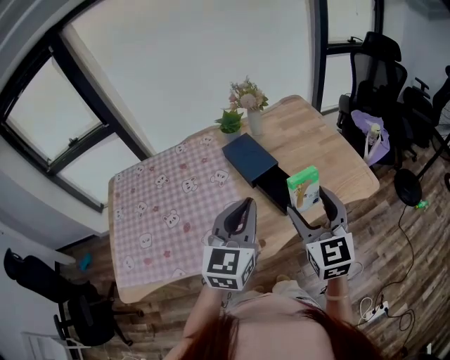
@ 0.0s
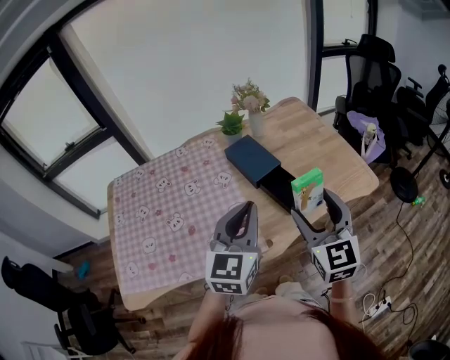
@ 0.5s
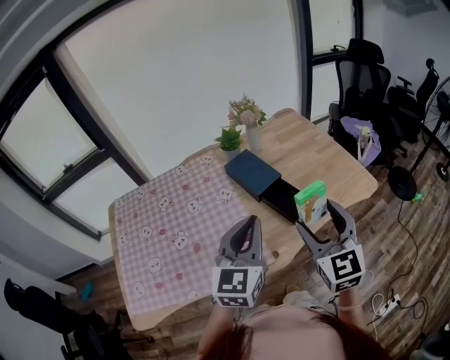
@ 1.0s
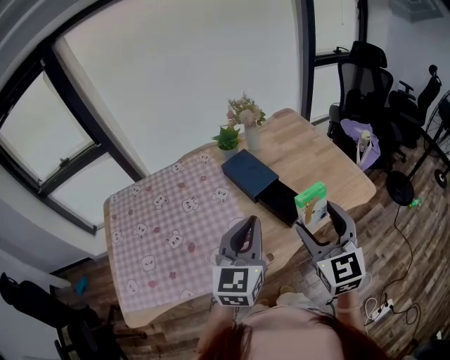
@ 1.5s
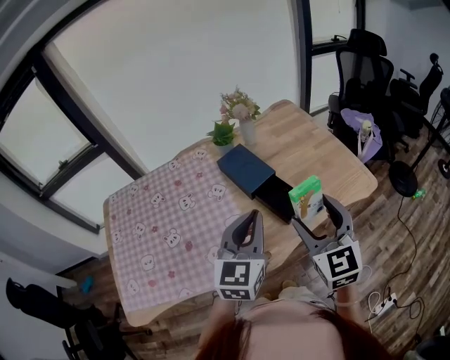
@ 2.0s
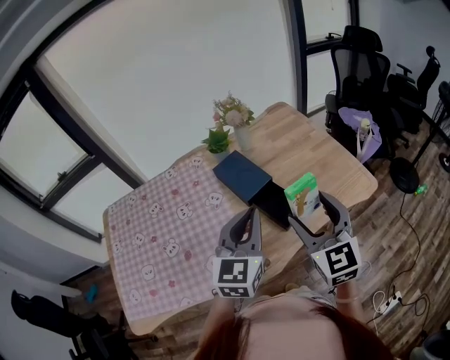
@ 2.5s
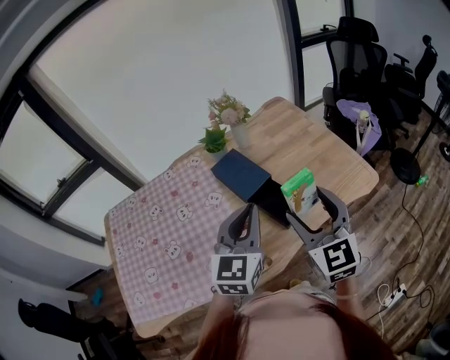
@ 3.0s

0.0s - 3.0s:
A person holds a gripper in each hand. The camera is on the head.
0.0s - 1.5s: The grippers move only a little.
1.5s - 3.0s: The grippers both shift forward by some 5 cm.

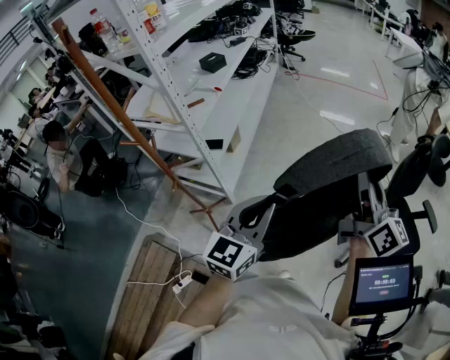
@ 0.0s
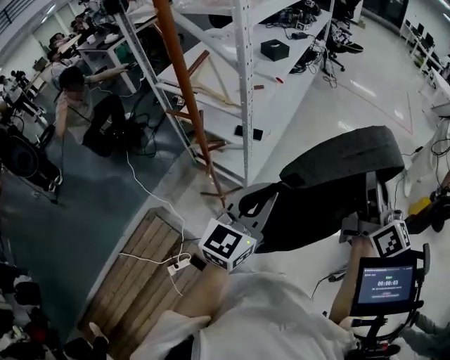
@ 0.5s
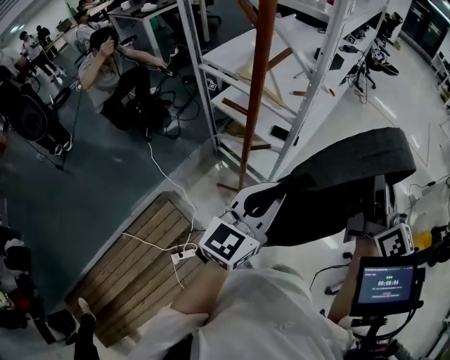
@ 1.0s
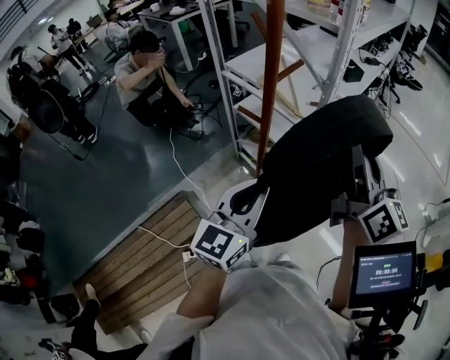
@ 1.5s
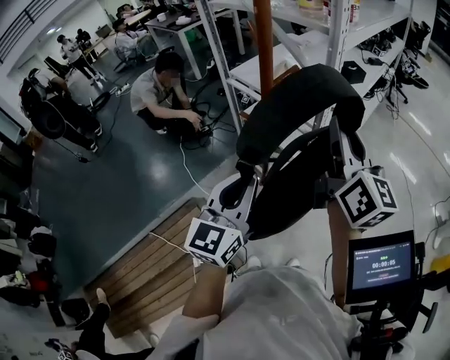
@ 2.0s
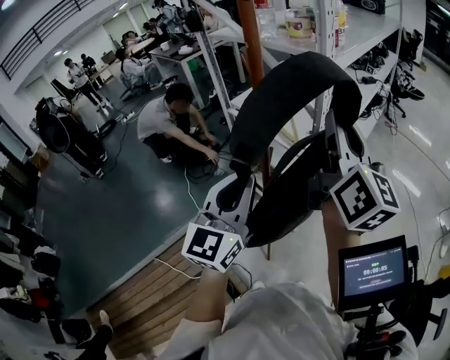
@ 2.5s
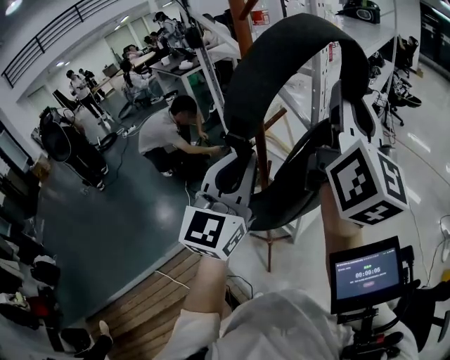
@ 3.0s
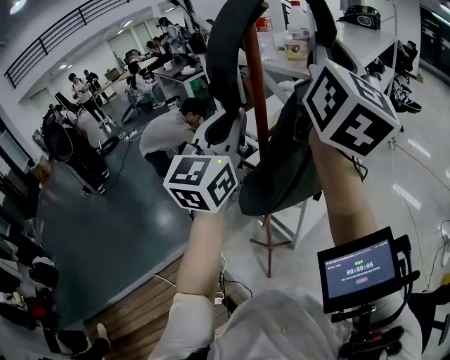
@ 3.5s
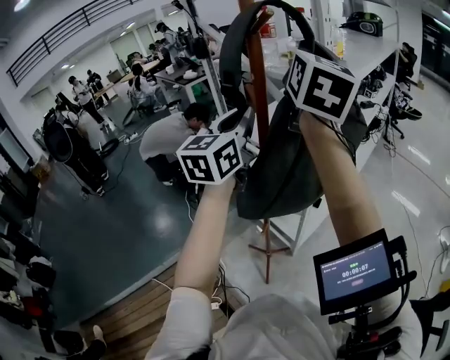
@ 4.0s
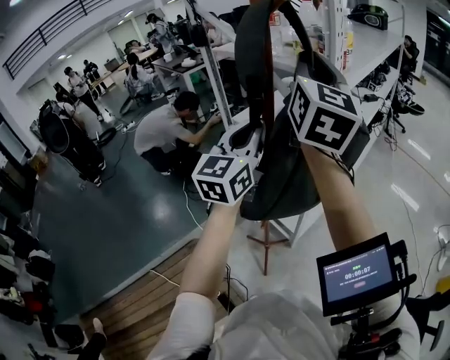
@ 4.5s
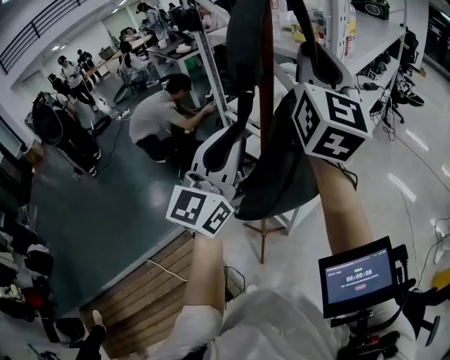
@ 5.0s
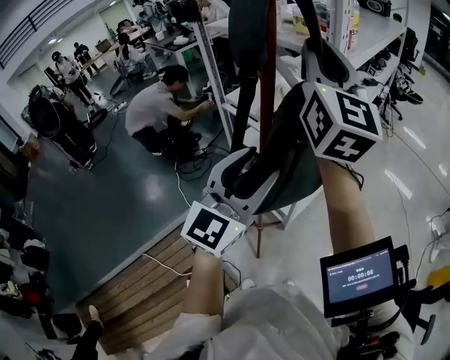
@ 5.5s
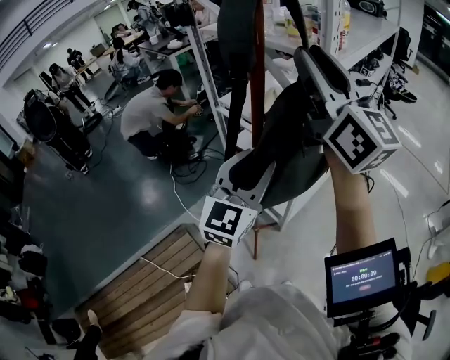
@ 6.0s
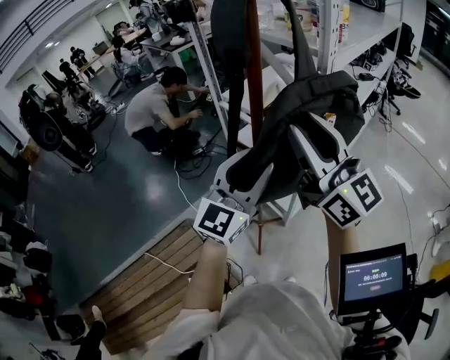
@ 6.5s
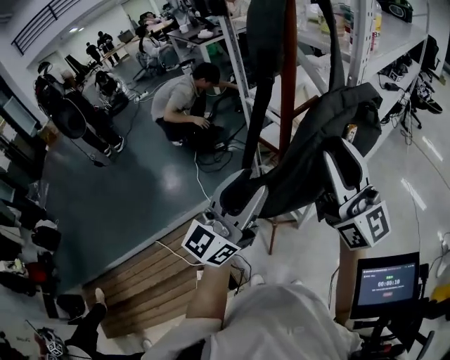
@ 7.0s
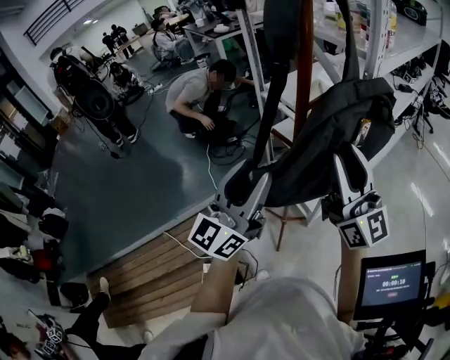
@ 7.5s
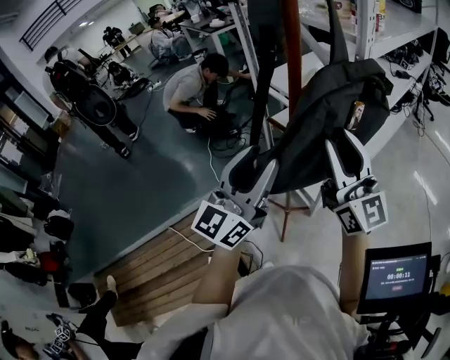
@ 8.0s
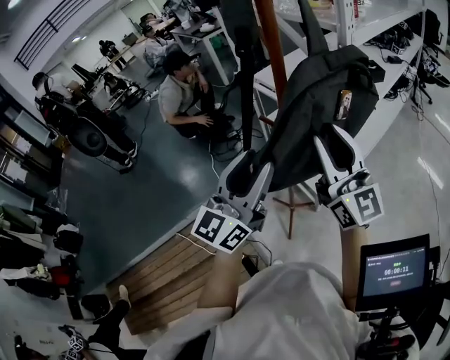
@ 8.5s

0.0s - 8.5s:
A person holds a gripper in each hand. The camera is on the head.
0.0s - 2.0s: The pair of grippers is taken some 50 cm. The left gripper changes its angle by some 40 degrees. The right gripper turns by approximately 20 degrees.
2.0s - 4.0s: The two grippers go about 25 cm upward and forward. The right gripper rotates roughly 20 degrees.
4.0s - 6.5s: Both grippers move downward and backward, some 20 cm. The right gripper rotates about 40 degrees, and opens its fingers, while the left gripper opens its fingers.
6.5s - 8.5s: The left gripper goes about 10 cm backward and to the left; the right gripper shifts about 5 cm downward.

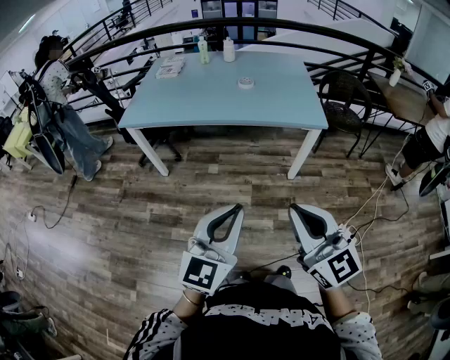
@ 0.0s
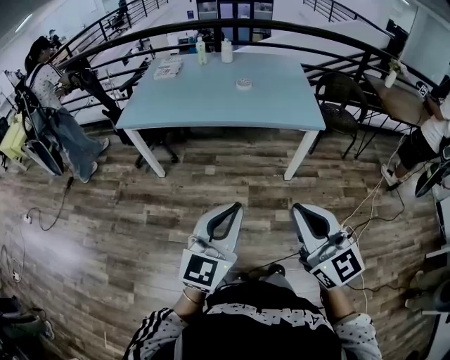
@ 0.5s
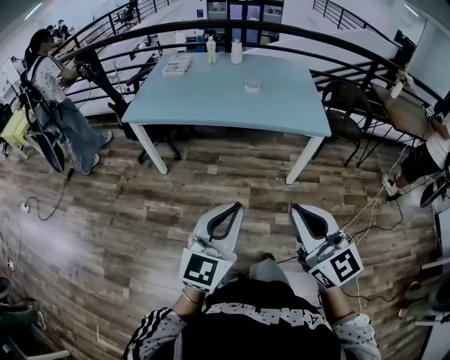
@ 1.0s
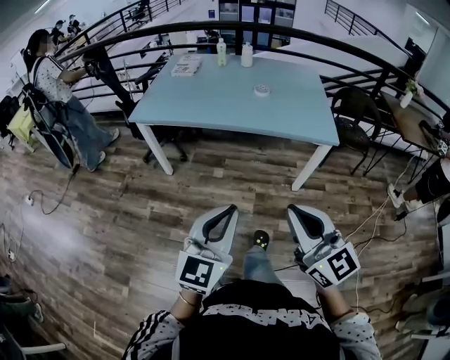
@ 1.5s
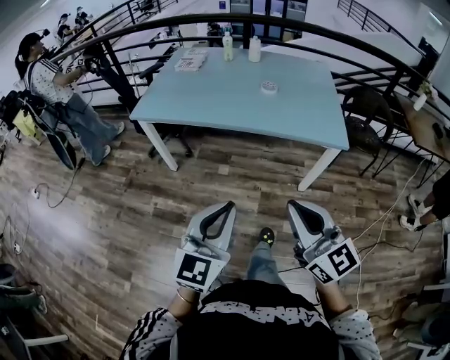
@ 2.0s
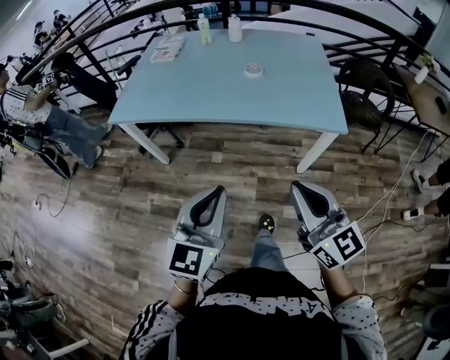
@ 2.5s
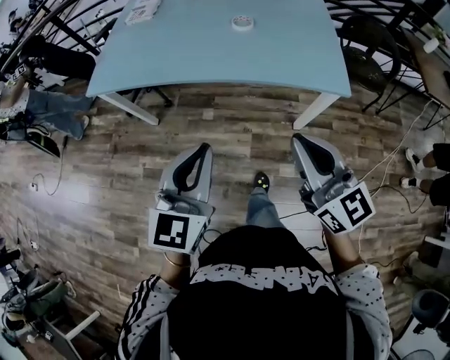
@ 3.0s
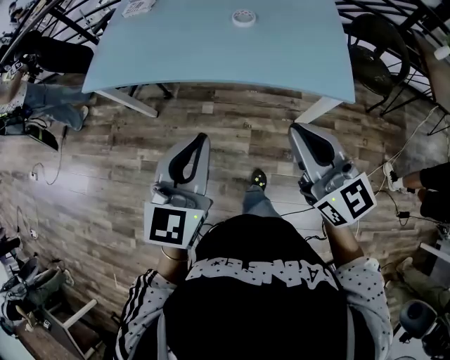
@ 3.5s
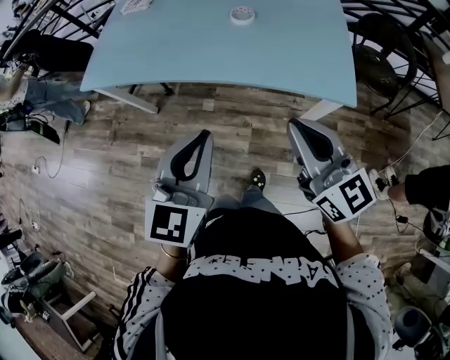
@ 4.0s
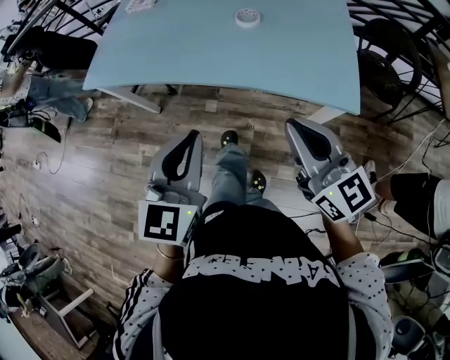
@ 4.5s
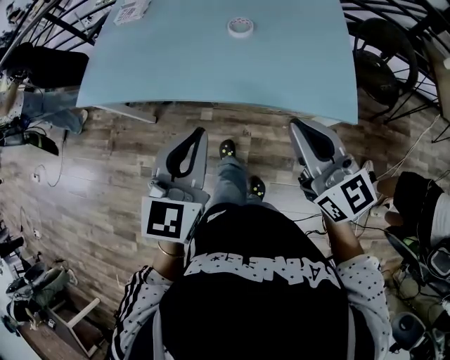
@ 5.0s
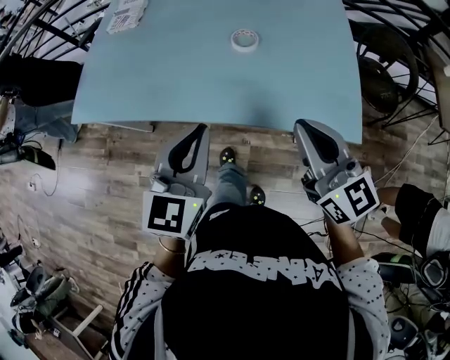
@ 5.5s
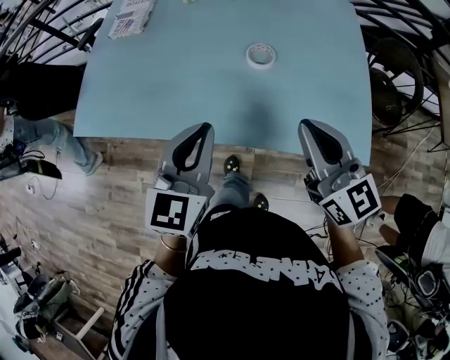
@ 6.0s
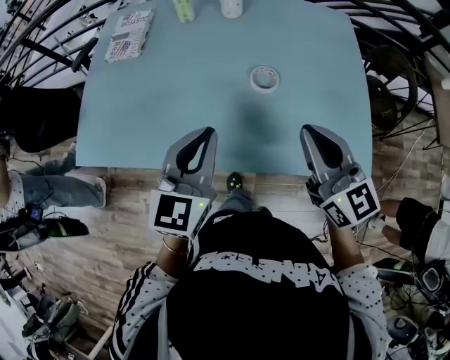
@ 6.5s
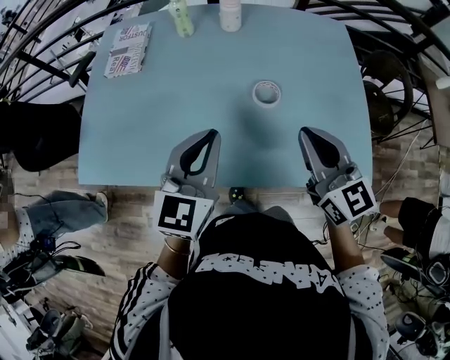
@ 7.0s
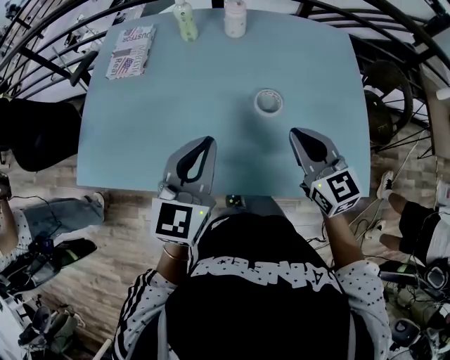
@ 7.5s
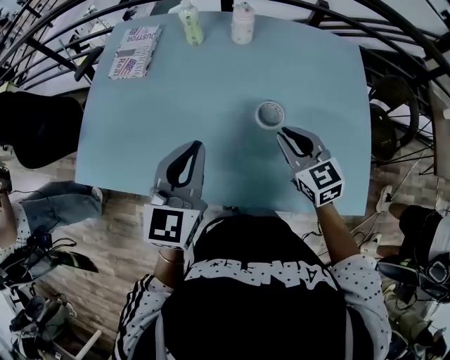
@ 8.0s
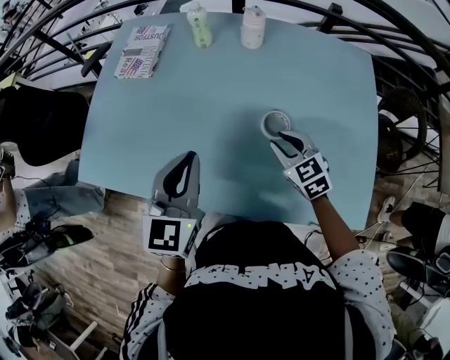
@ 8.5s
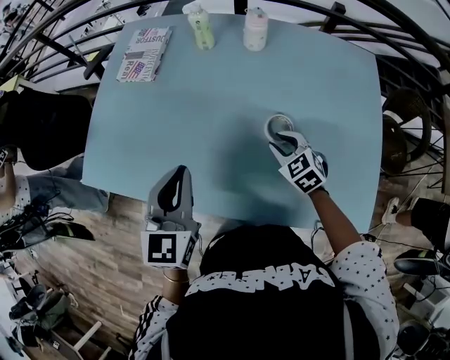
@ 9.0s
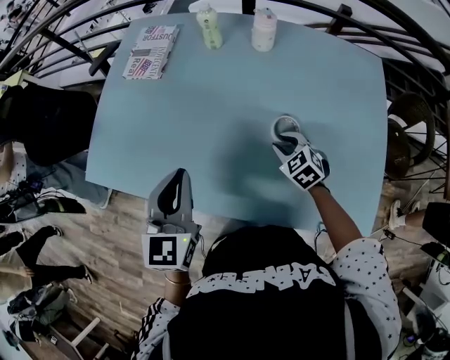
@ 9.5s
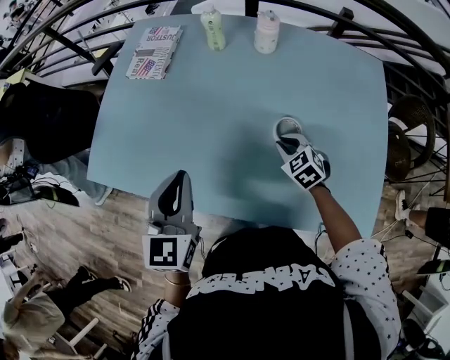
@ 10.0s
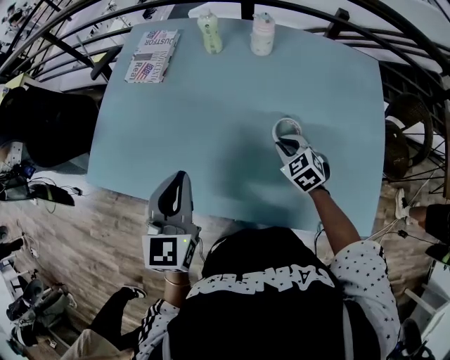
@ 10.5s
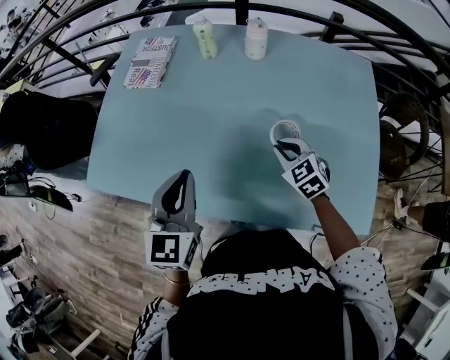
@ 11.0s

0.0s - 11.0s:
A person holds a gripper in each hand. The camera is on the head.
0.0s - 2.0s: Both grippers move forward, approximately 10 cm.
2.0s - 3.5s: The grippers both shift forward and to the right by roughly 25 cm.
3.5s - 5.5s: The two grippers go some 20 cm forward.
5.5s - 7.5s: The left gripper moves forward and to the left, approximately 25 cm, while the right gripper goes roughly 25 cm forward.
7.5s - 9.0s: The right gripper heads downward and forward, covering roughly 20 cm, swivels roughly 40 degrees, and opens, while the left gripper shifts about 5 cm to the left, and changes its angle by roughly 20 degrees.
9.0s - 11.0s: The grippers move only a little.

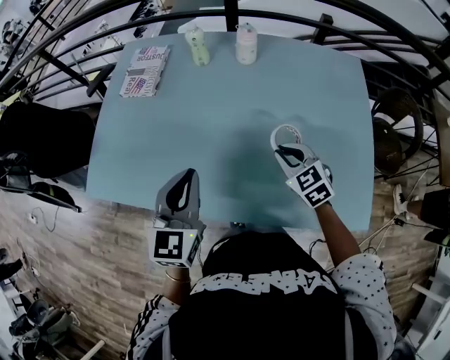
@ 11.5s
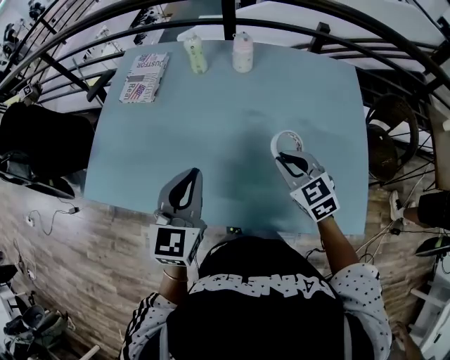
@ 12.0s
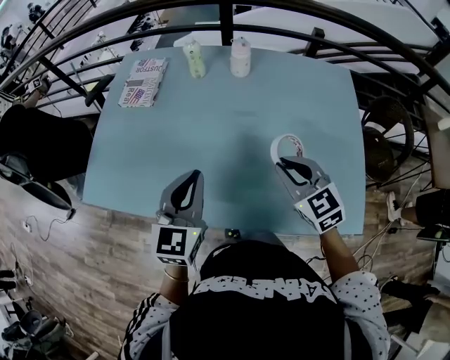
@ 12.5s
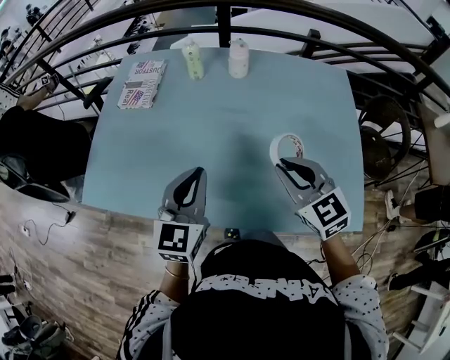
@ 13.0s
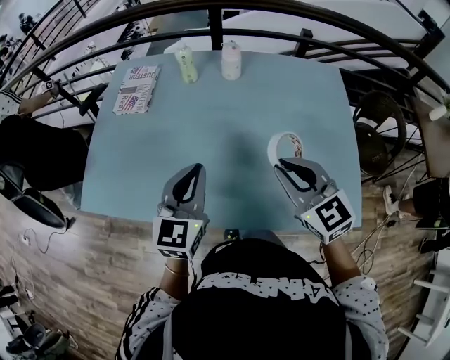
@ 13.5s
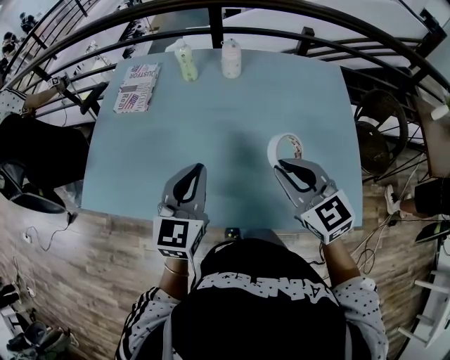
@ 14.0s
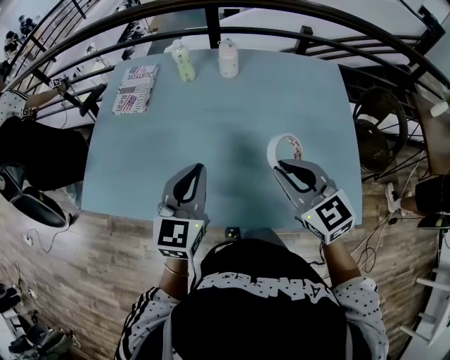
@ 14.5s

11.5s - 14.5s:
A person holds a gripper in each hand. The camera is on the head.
11.5s - 13.0s: The right gripper is displaced upward and backward by approximately 15 cm.
13.0s - 14.5s: The grippers stay close to where they were, moving slightly.

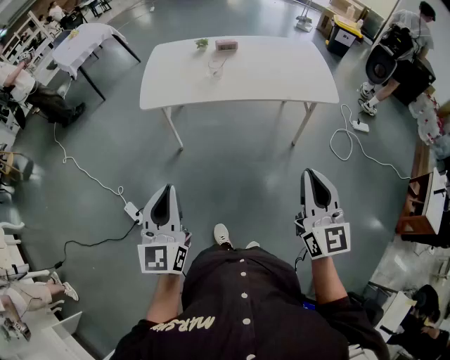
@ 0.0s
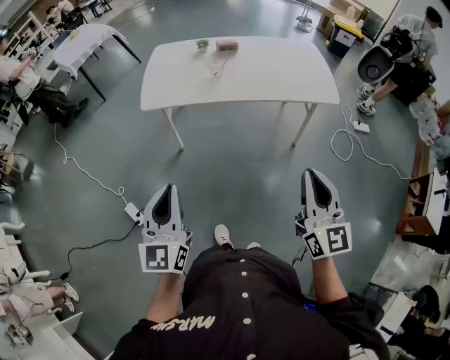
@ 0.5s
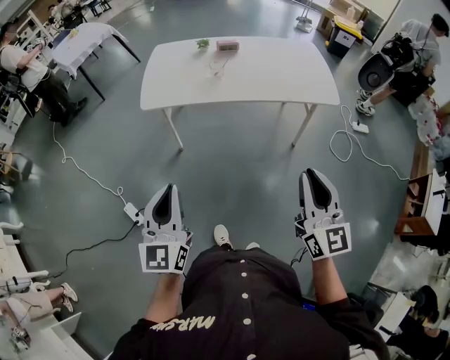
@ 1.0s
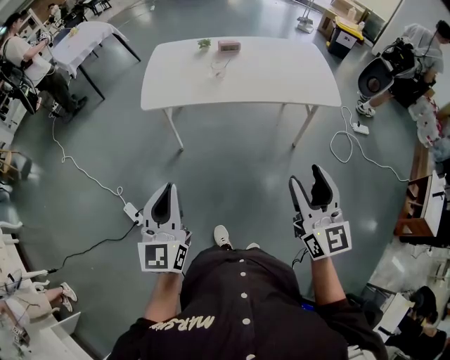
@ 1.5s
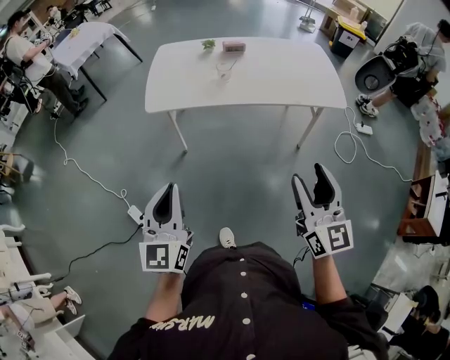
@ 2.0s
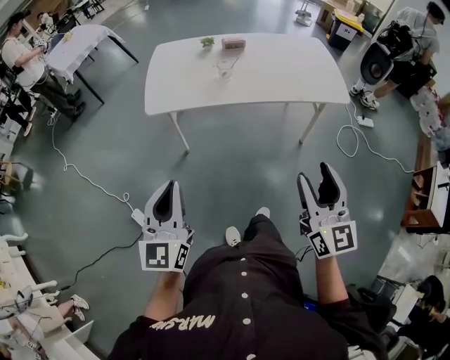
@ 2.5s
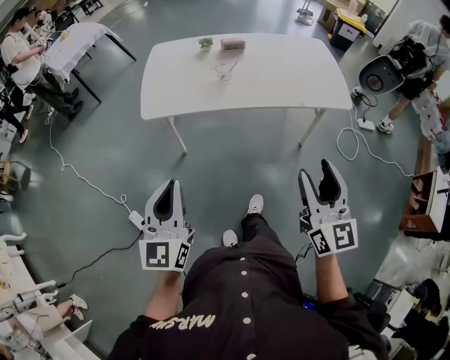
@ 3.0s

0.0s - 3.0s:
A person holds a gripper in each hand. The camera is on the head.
0.0s - 1.5s: The right gripper opens its fingers.
1.5s - 3.0s: The two grippers go about 10 cm forward.
